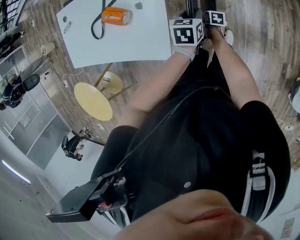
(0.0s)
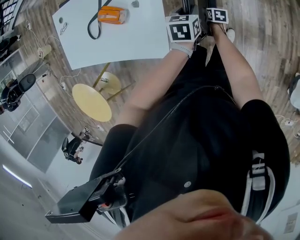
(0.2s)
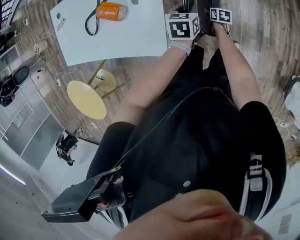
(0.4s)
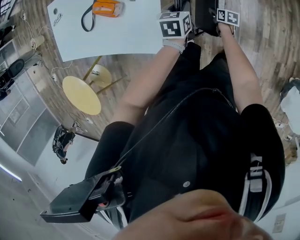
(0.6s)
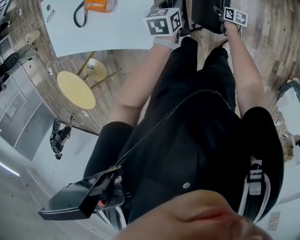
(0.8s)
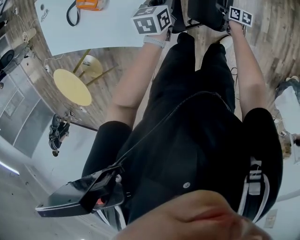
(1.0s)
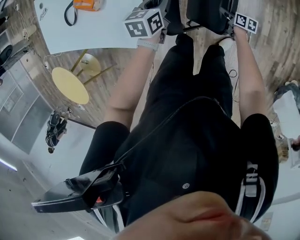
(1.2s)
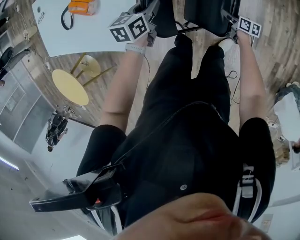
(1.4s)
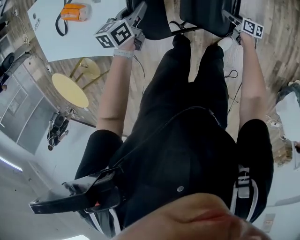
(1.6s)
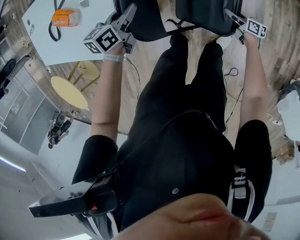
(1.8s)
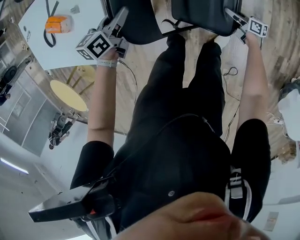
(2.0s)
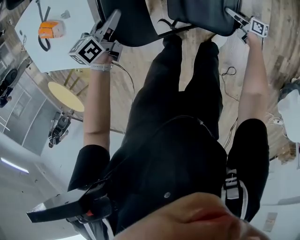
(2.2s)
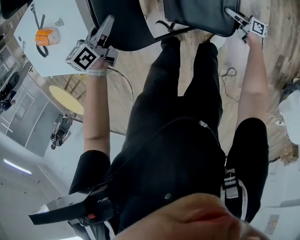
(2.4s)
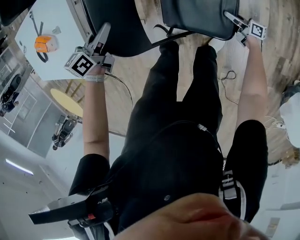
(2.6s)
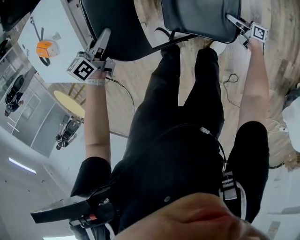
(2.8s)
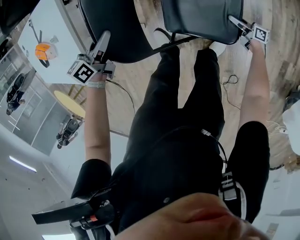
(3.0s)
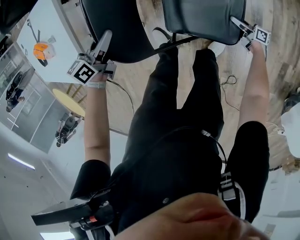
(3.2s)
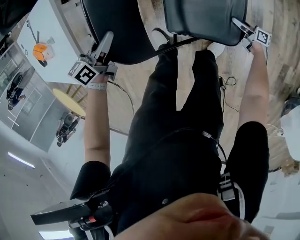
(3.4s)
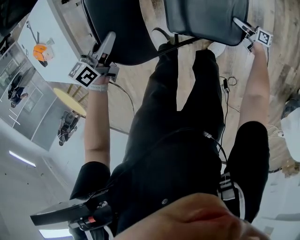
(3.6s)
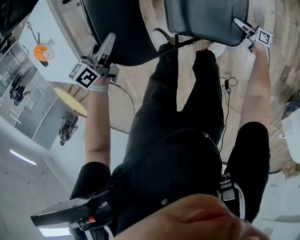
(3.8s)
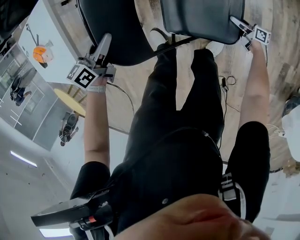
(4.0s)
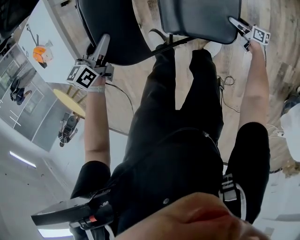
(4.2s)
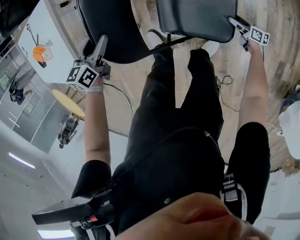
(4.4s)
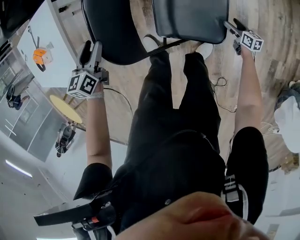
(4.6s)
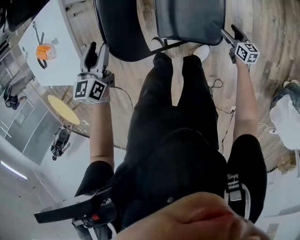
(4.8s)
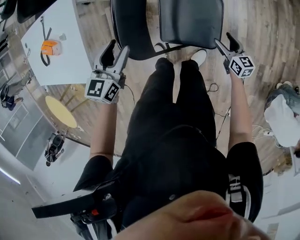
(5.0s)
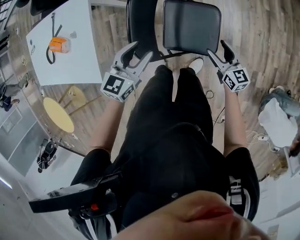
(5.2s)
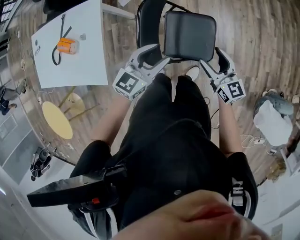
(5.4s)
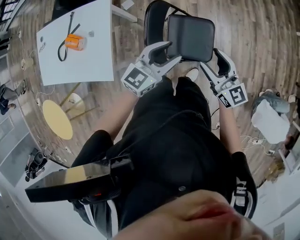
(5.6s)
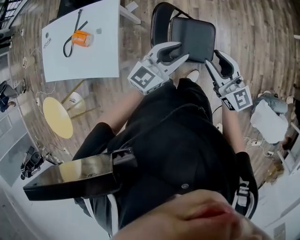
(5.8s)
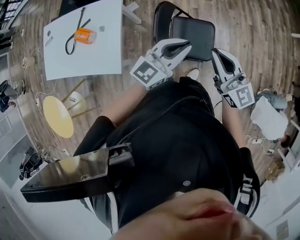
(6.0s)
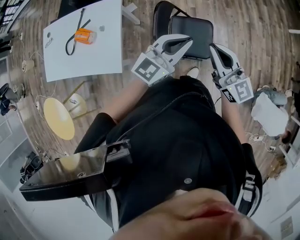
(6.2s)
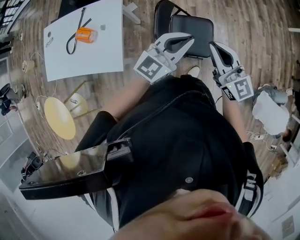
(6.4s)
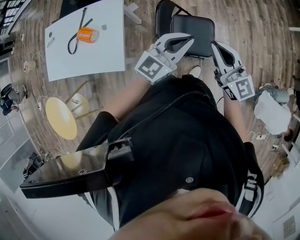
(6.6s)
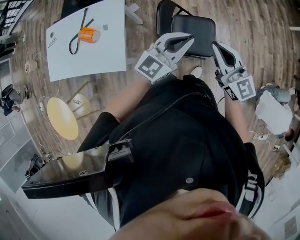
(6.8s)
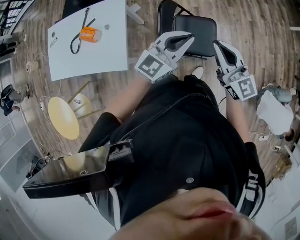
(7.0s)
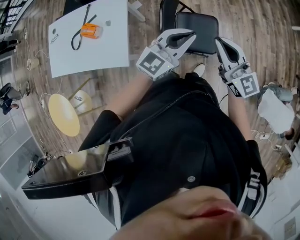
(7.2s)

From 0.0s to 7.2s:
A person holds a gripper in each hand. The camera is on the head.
From 0.0s to 1.4s: The right gripper travels to the right and downward by approximately 20 cm, and rotates approximately 20 degrees; the left gripper is displaced downward by about 5 cm.
From 1.4s to 2.8s: The left gripper is displaced downward and to the right by approximately 10 cm, while the right gripper shifts approximately 25 cm to the right and downward, and rotates roughly 30 degrees.
From 2.8s to 4.4s: The right gripper goes roughly 10 cm to the right and downward, and opens, while the left gripper moves to the right, roughly 5 cm, rotates roughly 20 degrees, and opens up.
From 4.4s to 5.8s: The left gripper travels upward, backward and to the right by some 40 cm, and points its fingers roughly 40 degrees further upward. The right gripper shifts some 70 cm upward, twists roughly 60 degrees counterclockwise, seen from behind, and closes its fingers.
From 5.8s to 7.2s: The grippers both shift upward by about 5 cm. The right gripper closes, while the left gripper closes.

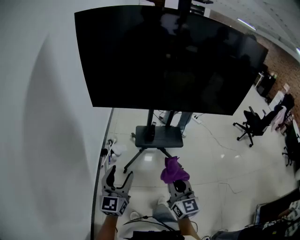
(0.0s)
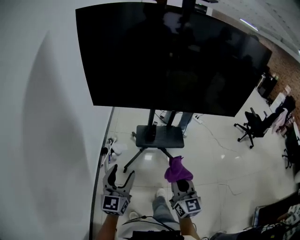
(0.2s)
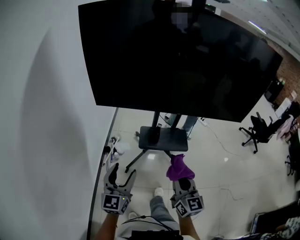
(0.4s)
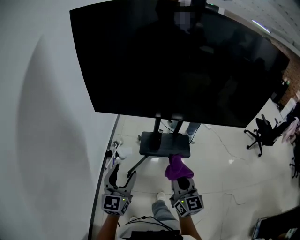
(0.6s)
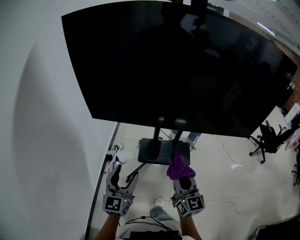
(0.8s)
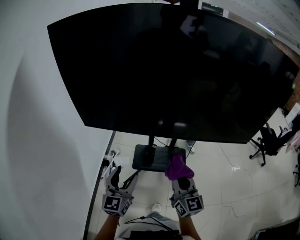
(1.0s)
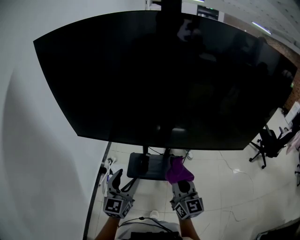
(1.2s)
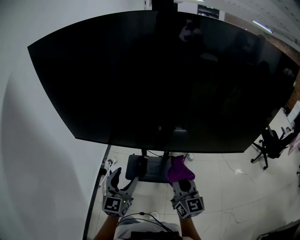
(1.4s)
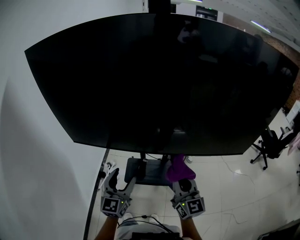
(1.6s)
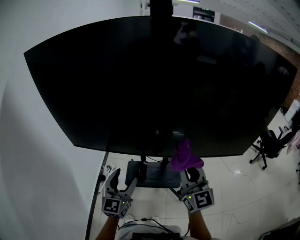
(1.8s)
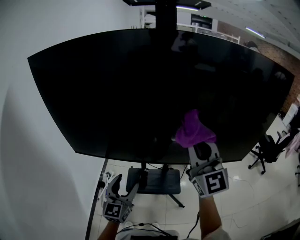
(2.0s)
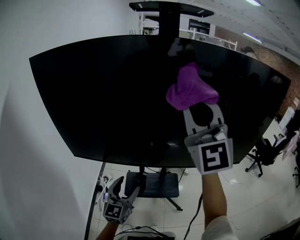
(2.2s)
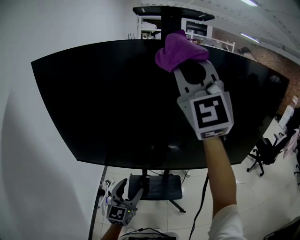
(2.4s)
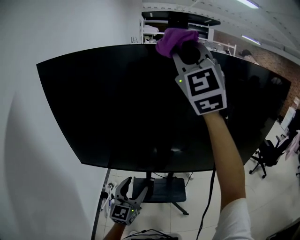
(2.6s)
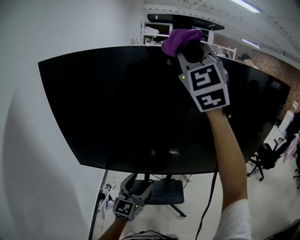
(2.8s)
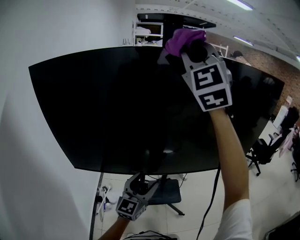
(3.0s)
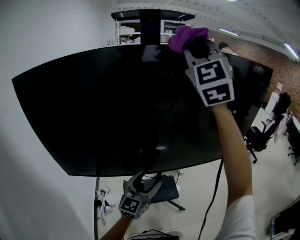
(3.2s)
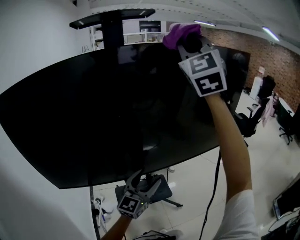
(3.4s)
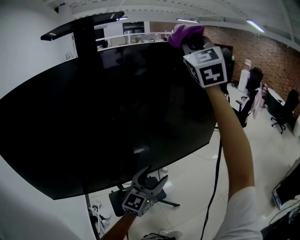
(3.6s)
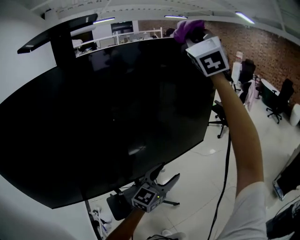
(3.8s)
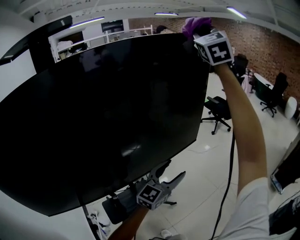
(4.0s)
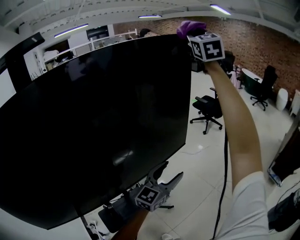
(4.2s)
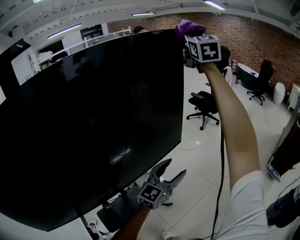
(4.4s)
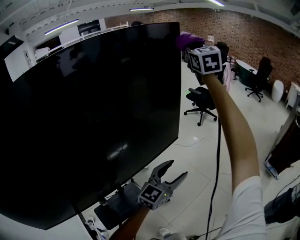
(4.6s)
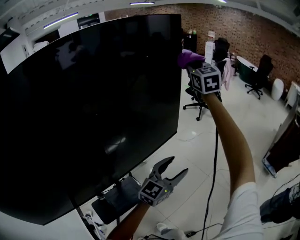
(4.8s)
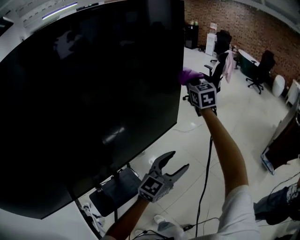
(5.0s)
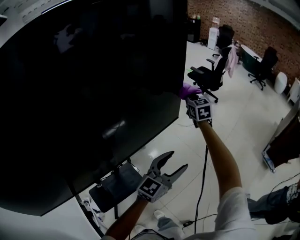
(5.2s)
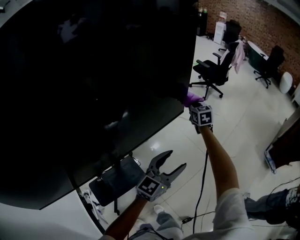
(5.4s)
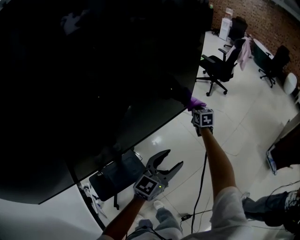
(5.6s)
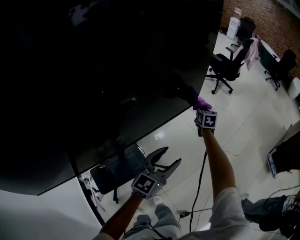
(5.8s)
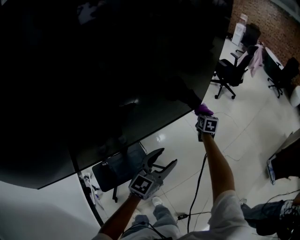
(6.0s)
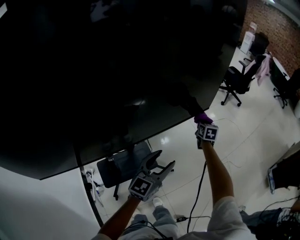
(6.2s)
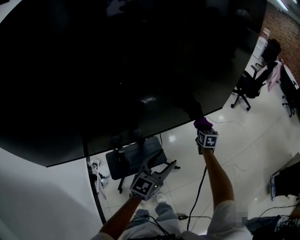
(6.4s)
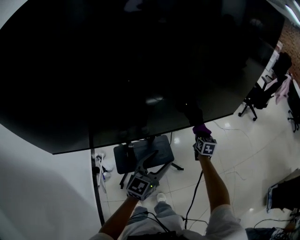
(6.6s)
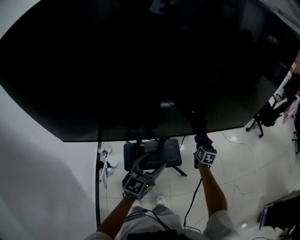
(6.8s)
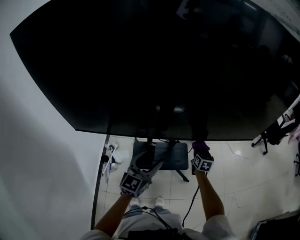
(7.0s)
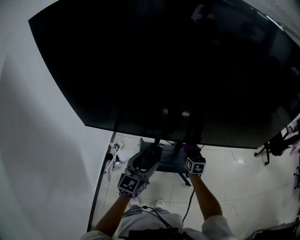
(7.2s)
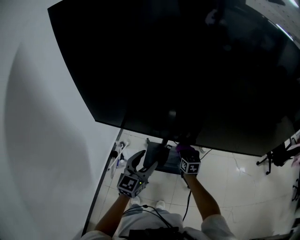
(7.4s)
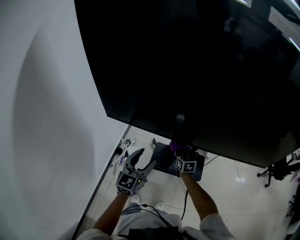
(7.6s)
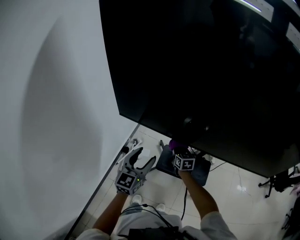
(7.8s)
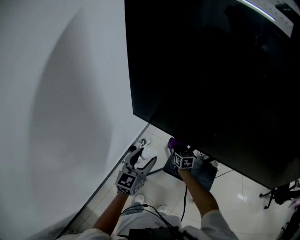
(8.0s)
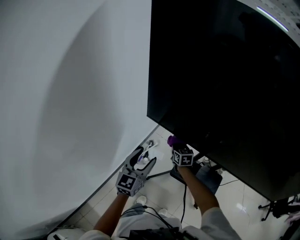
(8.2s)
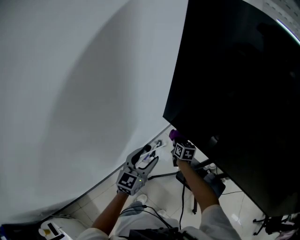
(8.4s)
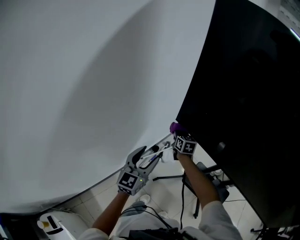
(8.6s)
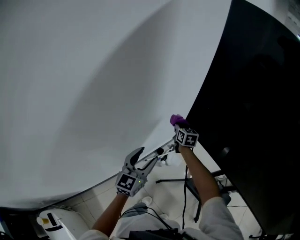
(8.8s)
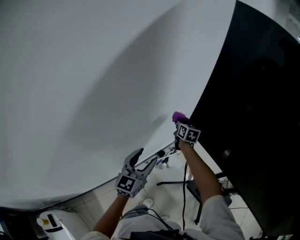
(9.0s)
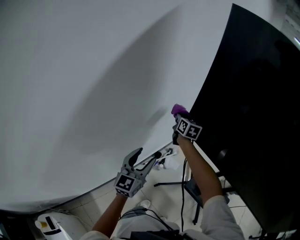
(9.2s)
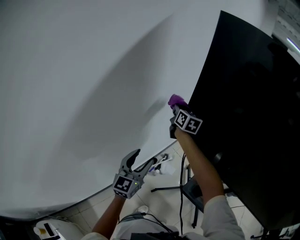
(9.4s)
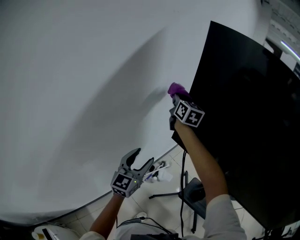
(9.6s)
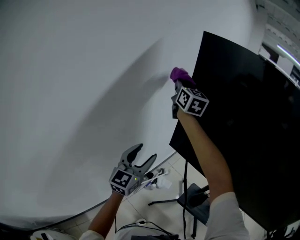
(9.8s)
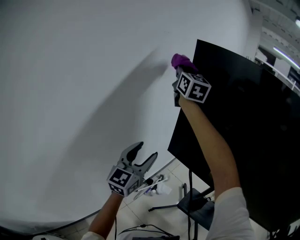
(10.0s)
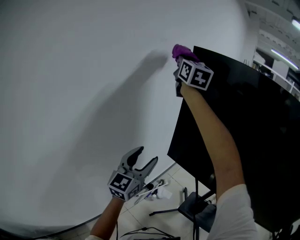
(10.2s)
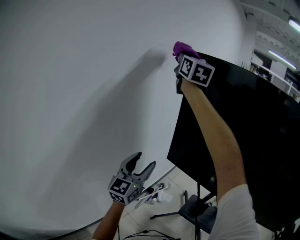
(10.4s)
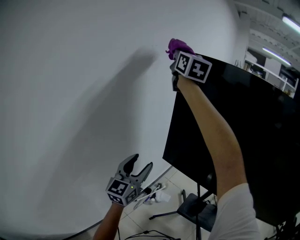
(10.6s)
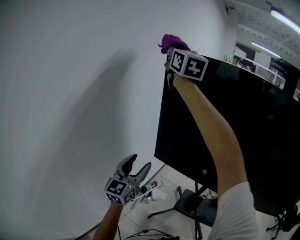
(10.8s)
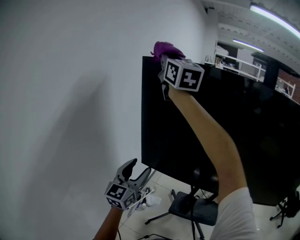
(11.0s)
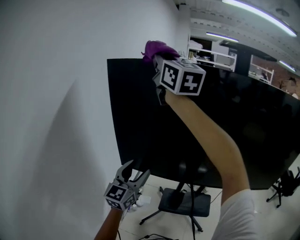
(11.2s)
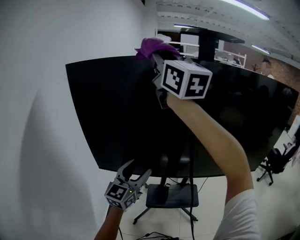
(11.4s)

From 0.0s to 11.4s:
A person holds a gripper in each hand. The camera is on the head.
From 0.0s to 1.4s: The grippers both shift forward and to the right by roughly 35 cm.
From 1.4s to 2.8s: The left gripper goes roughly 10 cm upward and forward. Meanwhile the right gripper heads upward, covering about 50 cm, and rolls counterclockwise, seen from behind, by about 60 degrees.
From 2.8s to 4.2s: The two grippers travel together, about 60 cm. The right gripper changes its angle by about 50 degrees, while the left gripper swivels roughly 60 degrees.
From 4.2s to 5.6s: The right gripper moves downward, approximately 70 cm, and tilts its fingers about 40 degrees downward. The left gripper shifts roughly 10 cm downward.
From 5.6s to 7.2s: The two grippers travel together, about 50 cm. The right gripper changes its angle by about 40 degrees, while the left gripper swivels some 50 degrees.
From 7.2s to 8.6s: The right gripper shifts by approximately 60 cm, and changes its angle by about 40 degrees. Meanwhile the left gripper changes place by some 40 cm, and swivels about 40 degrees.
From 8.6s to 10.0s: The right gripper shifts some 60 cm upward, and points its fingers approximately 40 degrees further upward, while the left gripper heads upward, covering about 20 cm.
From 10.0s to 11.4s: The left gripper ends up roughly 30 cm from where it was, and swivels approximately 40 degrees. Meanwhile the right gripper moves about 40 cm, and swivels some 20 degrees.

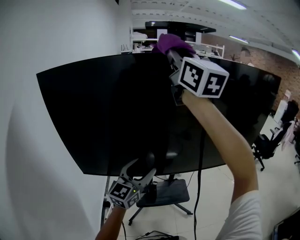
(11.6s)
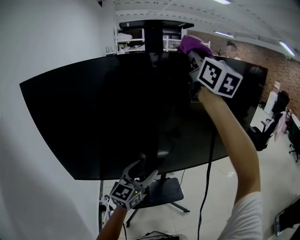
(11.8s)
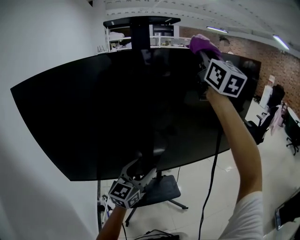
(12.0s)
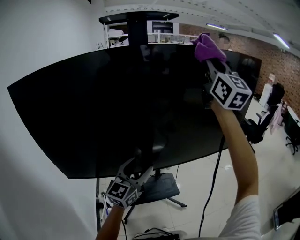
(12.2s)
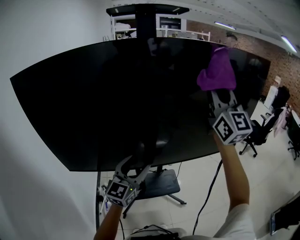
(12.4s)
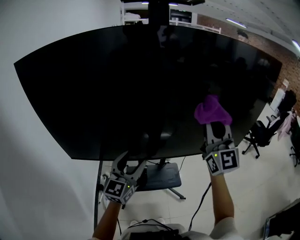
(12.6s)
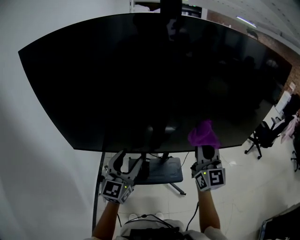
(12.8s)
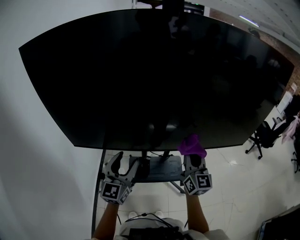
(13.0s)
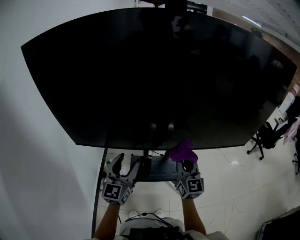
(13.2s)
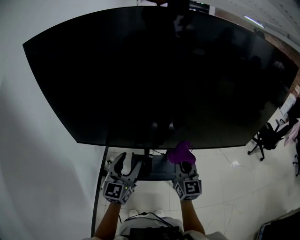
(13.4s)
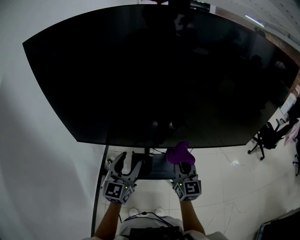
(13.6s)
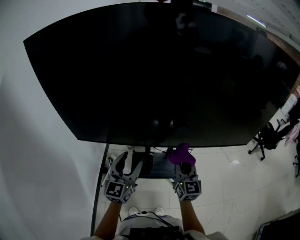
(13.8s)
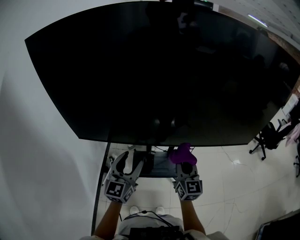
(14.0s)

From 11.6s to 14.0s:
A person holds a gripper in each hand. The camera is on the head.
From 11.6s to 12.8s: The right gripper moves downward and to the right, roughly 40 cm; the left gripper shifts roughly 5 cm downward, and goes to the right and returns, about 10 cm each way.
From 12.8s to 14.0s: The left gripper heads downward, covering about 5 cm, while the right gripper moves downward and to the left, roughly 20 cm.

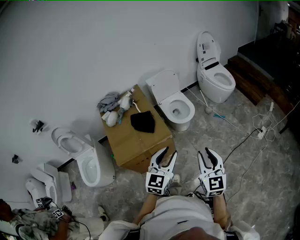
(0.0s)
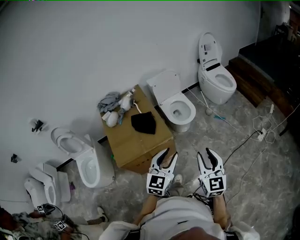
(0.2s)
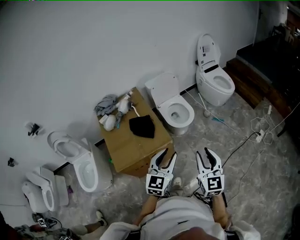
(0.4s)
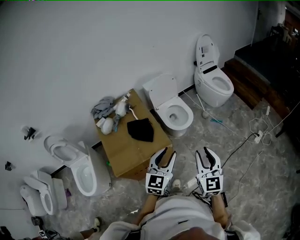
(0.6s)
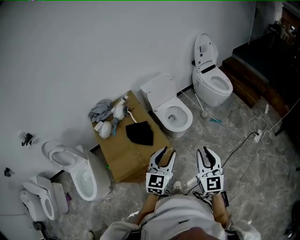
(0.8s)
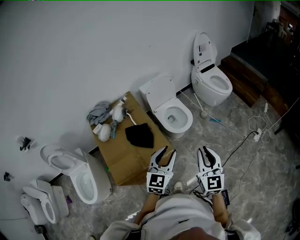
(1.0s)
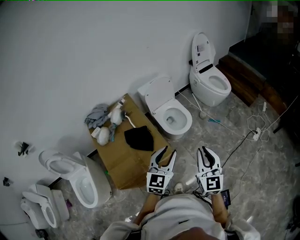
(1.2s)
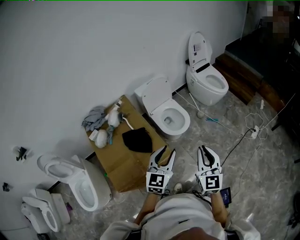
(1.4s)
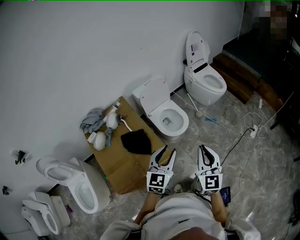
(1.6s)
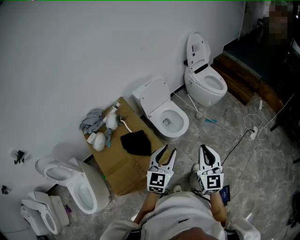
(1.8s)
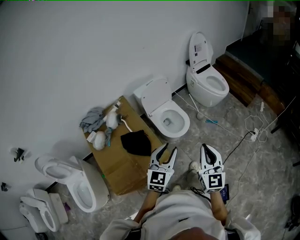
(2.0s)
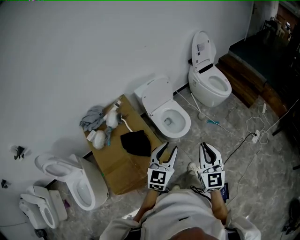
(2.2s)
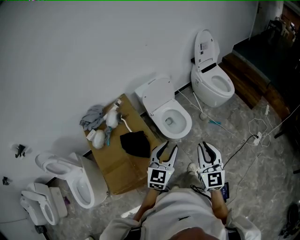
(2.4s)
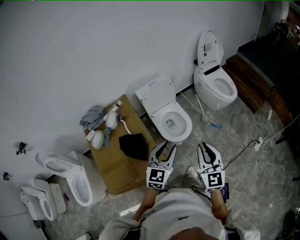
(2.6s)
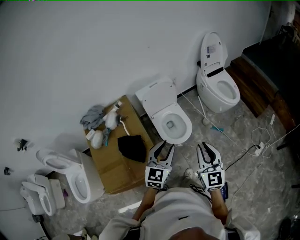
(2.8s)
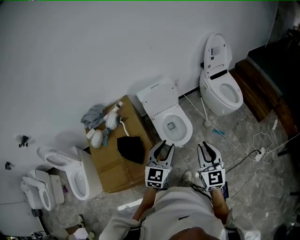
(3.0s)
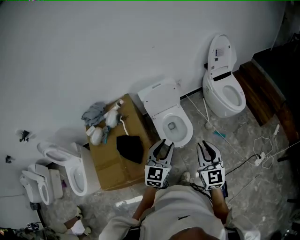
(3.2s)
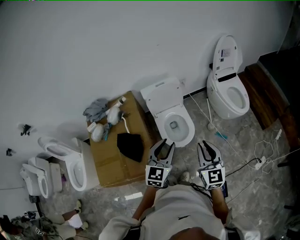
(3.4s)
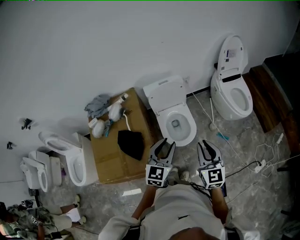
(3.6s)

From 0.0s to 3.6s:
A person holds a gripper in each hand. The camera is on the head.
From 0.0s to 1.8s: Both grippers travel together forward and to the left, about 25 cm.
From 1.8s to 3.6s: The two grippers go some 25 cm forward. The left gripper turns by about 20 degrees, while the right gripper swivels approximately 30 degrees.
